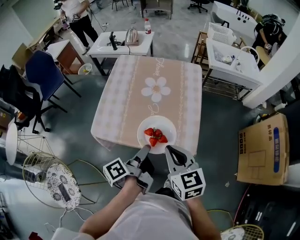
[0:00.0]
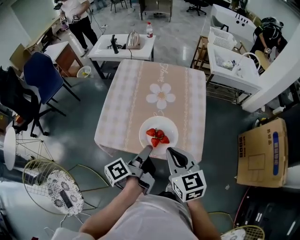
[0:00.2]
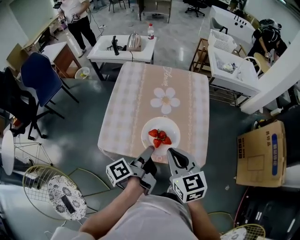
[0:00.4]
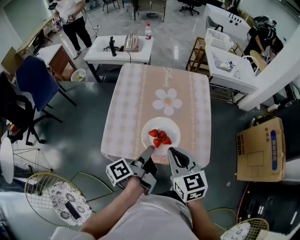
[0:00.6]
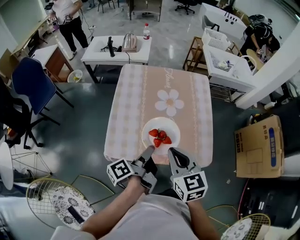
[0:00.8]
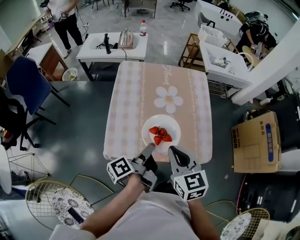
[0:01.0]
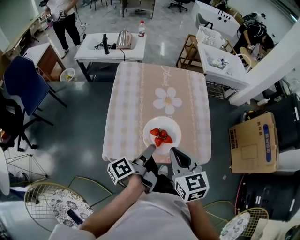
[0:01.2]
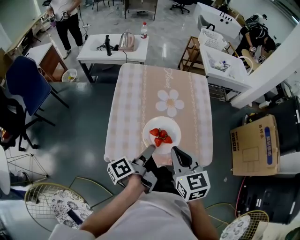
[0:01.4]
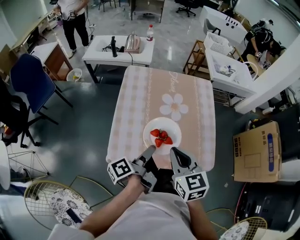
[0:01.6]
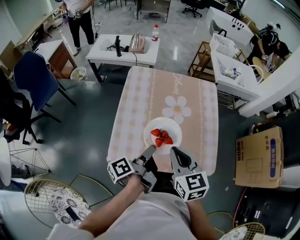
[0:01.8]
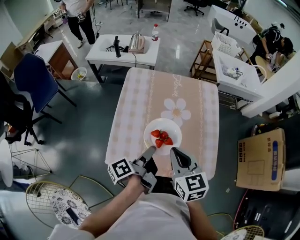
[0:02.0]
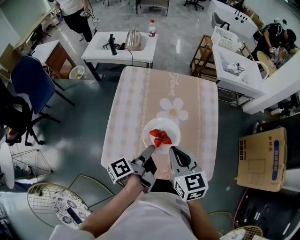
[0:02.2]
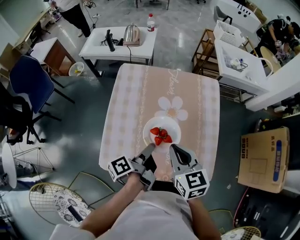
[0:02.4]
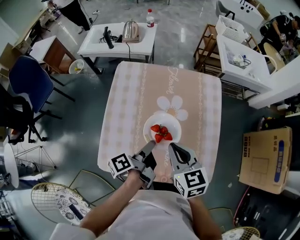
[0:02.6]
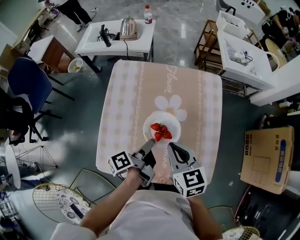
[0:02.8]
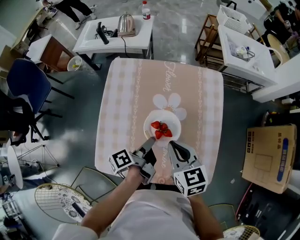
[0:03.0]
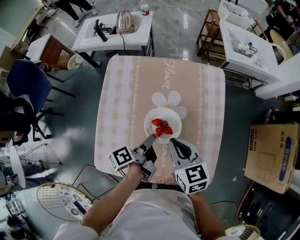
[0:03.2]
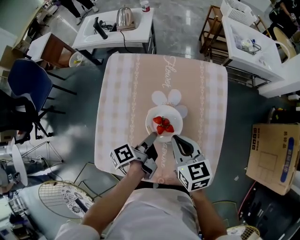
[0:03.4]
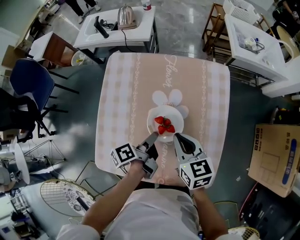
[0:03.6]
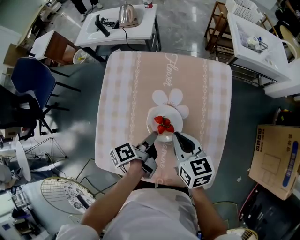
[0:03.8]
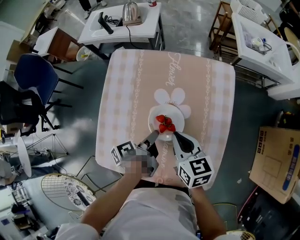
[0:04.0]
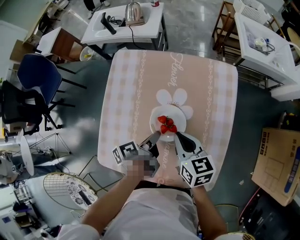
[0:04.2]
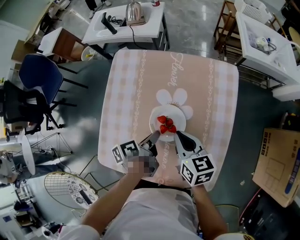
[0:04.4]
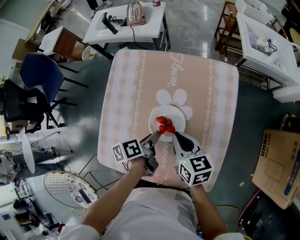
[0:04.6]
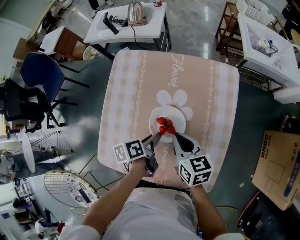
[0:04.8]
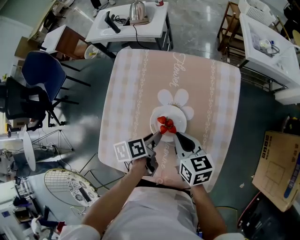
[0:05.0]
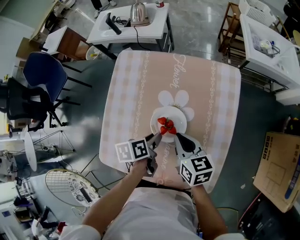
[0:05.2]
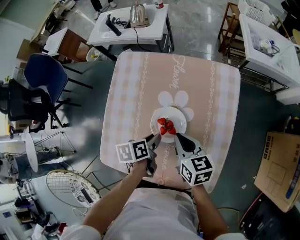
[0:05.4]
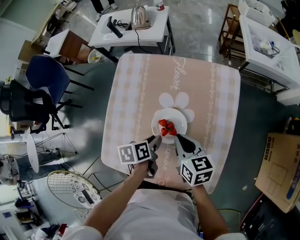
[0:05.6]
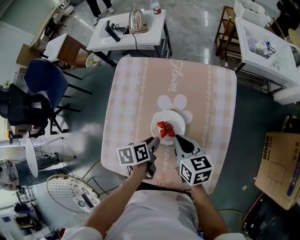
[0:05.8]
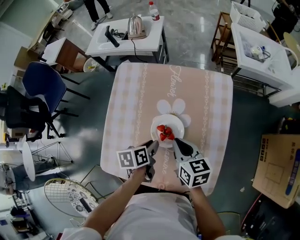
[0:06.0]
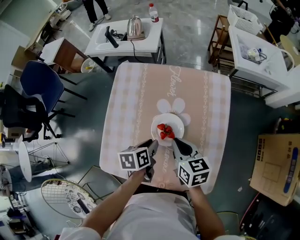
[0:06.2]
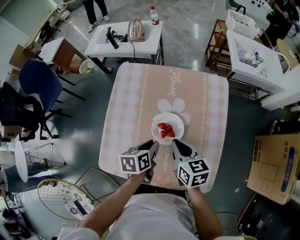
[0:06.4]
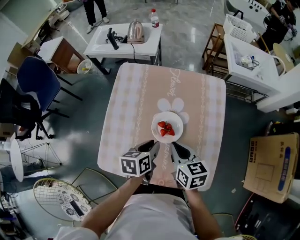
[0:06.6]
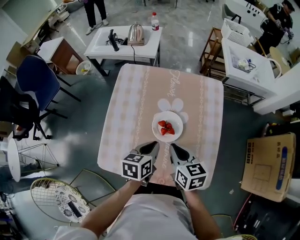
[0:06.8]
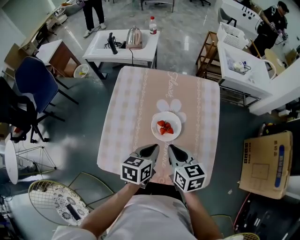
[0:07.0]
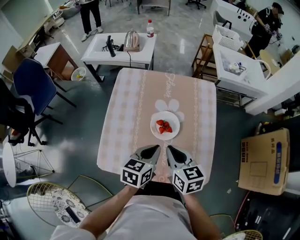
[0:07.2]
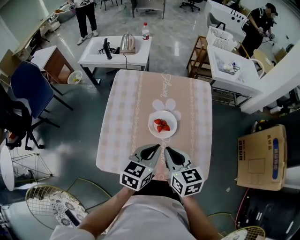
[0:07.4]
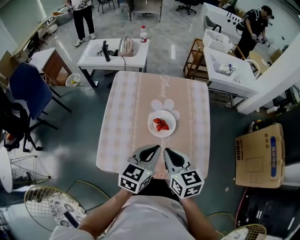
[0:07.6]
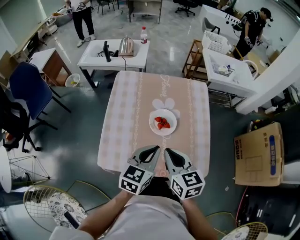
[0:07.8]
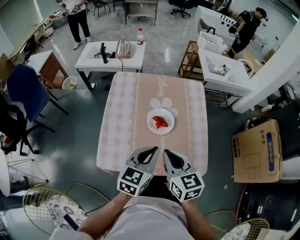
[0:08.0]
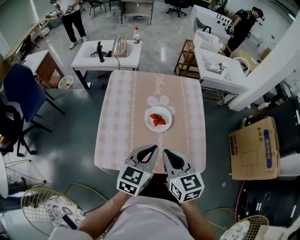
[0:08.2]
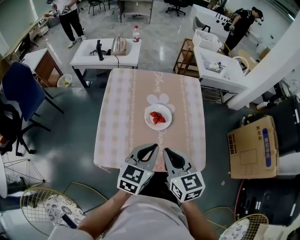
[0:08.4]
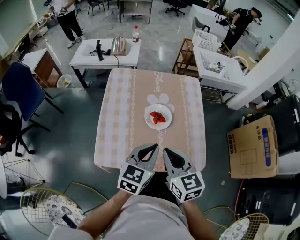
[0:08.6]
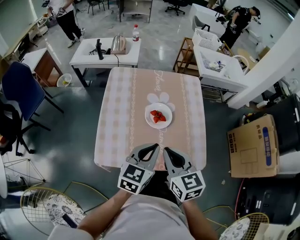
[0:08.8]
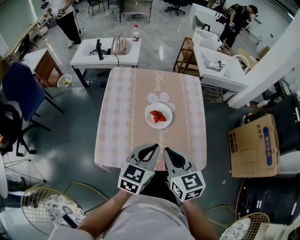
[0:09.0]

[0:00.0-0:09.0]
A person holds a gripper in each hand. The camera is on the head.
0:00.0 to 0:01.6: The right gripper ends up some 20 cm from where it was.
0:01.6 to 0:03.0: The right gripper changes place by roughly 20 cm.
0:03.0 to 0:04.4: The right gripper travels downward by about 5 cm.
0:06.0 to 0:07.6: The right gripper shifts by roughly 15 cm.
0:07.6 to 0:09.0: The right gripper ends up approximately 5 cm from where it was.

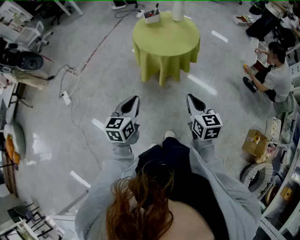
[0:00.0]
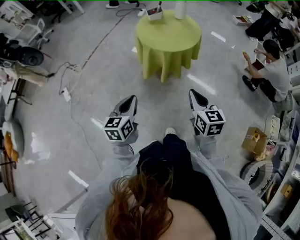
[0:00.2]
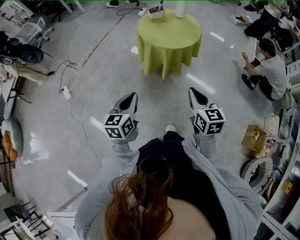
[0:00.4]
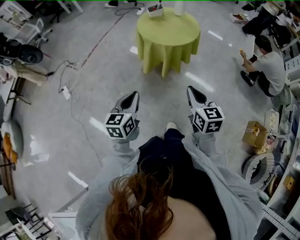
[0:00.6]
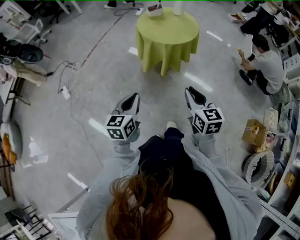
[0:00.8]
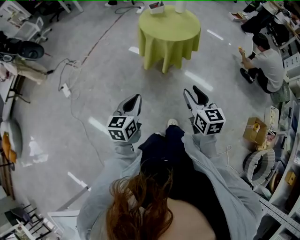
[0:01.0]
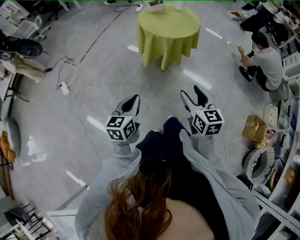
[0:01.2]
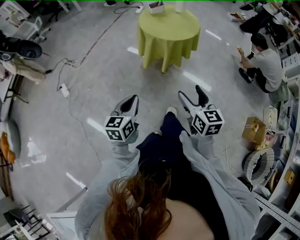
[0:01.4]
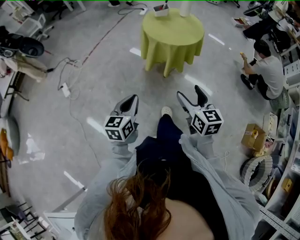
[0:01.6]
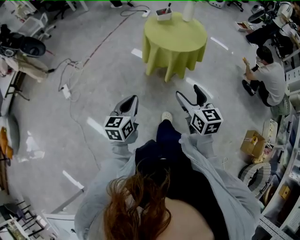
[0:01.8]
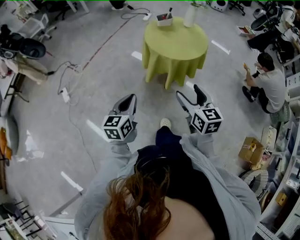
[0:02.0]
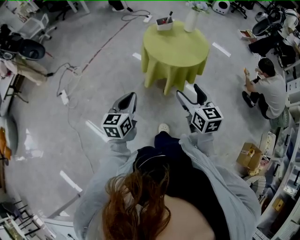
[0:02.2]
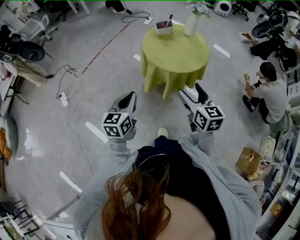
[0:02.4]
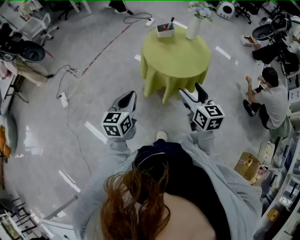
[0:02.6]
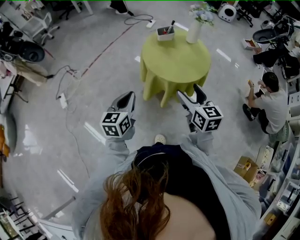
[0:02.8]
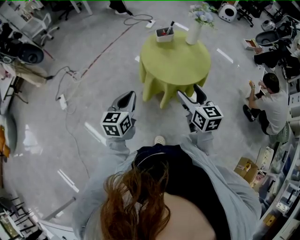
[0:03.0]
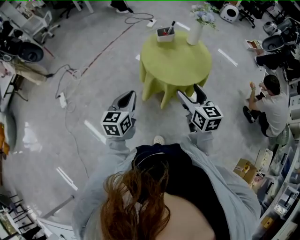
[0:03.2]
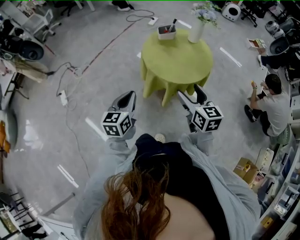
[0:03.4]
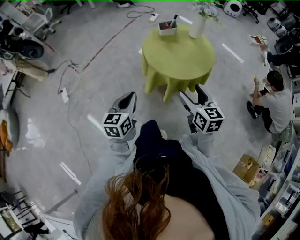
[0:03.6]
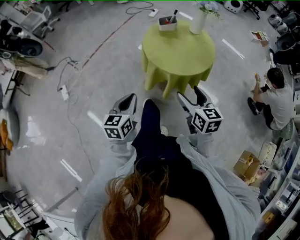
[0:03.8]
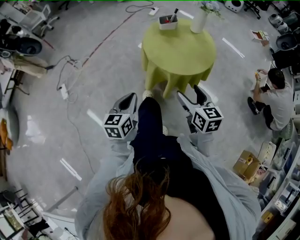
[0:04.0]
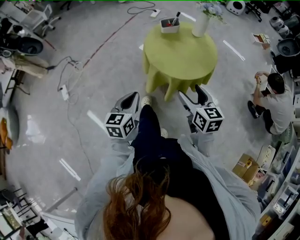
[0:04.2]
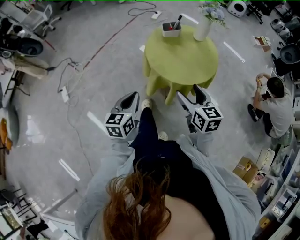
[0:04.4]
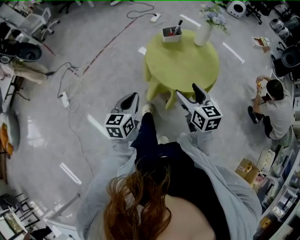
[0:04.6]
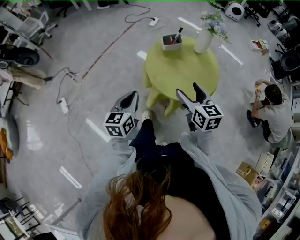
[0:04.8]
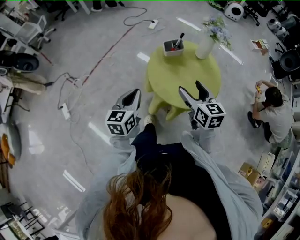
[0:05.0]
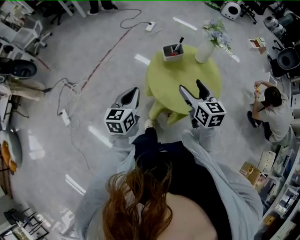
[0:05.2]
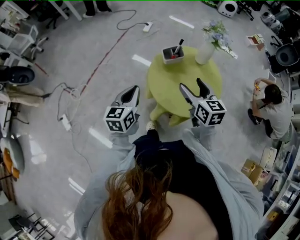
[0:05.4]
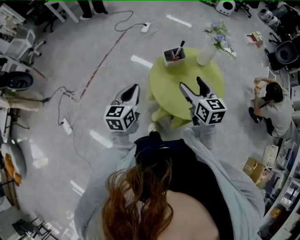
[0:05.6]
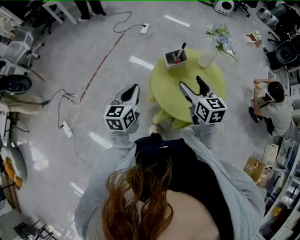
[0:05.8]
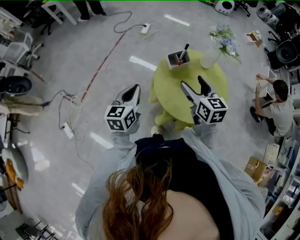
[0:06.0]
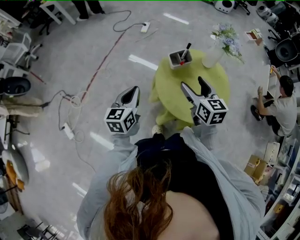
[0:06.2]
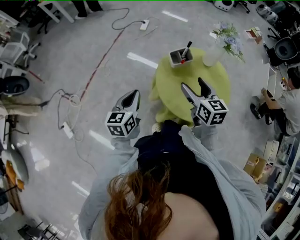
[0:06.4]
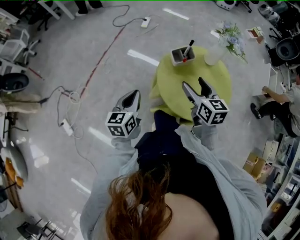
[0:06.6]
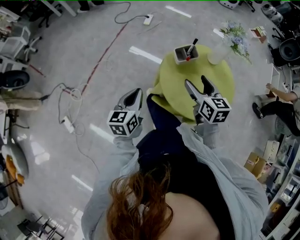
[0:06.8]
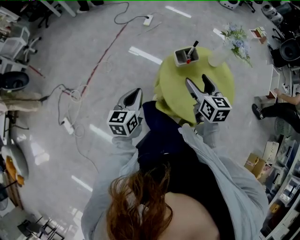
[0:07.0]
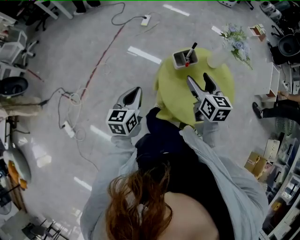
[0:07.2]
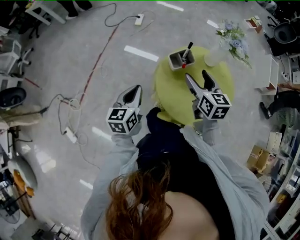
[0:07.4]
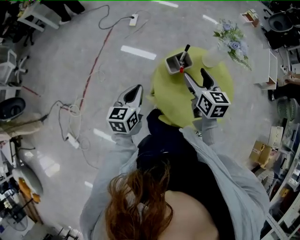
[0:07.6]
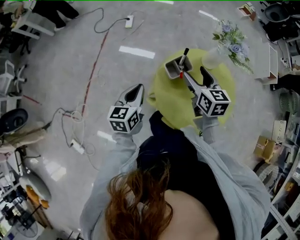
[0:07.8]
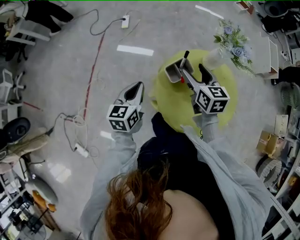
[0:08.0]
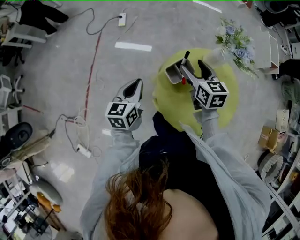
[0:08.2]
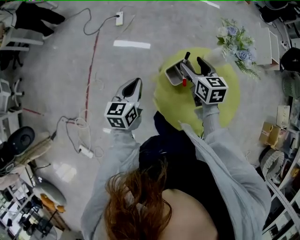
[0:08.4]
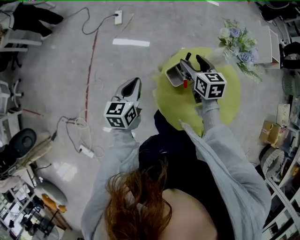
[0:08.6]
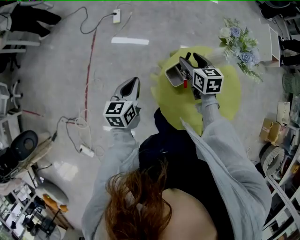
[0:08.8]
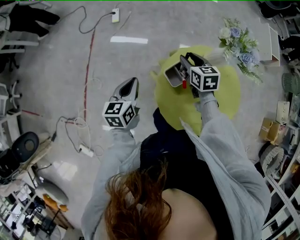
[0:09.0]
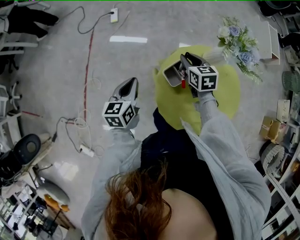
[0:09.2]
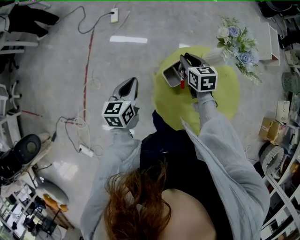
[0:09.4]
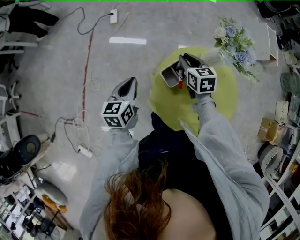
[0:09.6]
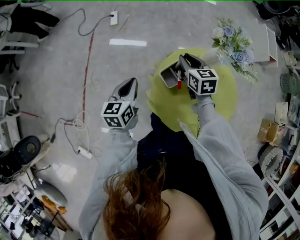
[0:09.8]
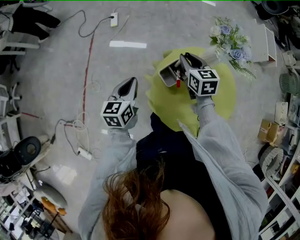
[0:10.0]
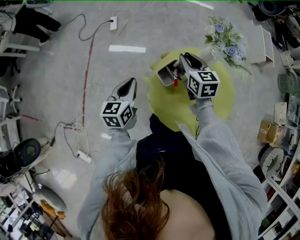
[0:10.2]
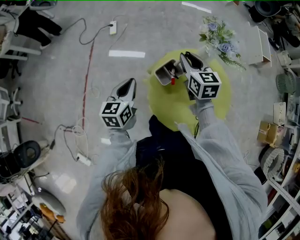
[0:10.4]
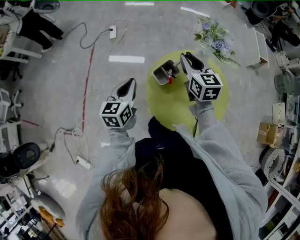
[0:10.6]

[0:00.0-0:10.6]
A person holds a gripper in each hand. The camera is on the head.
0:00.0 to 0:01.6: The grippers both shift backward and to the left by roughly 10 cm. The right gripper opens its fingers.
0:01.6 to 0:03.0: Both grippers move forward, some 30 cm.
0:03.0 to 0:04.6: Both grippers move forward, approximately 5 cm.
0:04.6 to 0:06.0: The two grippers go some 25 cm forward.
0:06.0 to 0:07.6: Both grippers travel together forward, approximately 10 cm.
0:07.6 to 0:09.0: The left gripper heads forward, covering some 15 cm. The right gripper shifts roughly 20 cm forward and downward, and closes its fingers.
0:09.0 to 0:10.6: The right gripper travels upward by about 15 cm, and changes its angle by roughly 20 degrees. The left gripper goes approximately 5 cm upward.

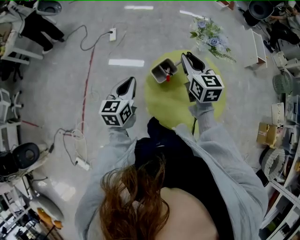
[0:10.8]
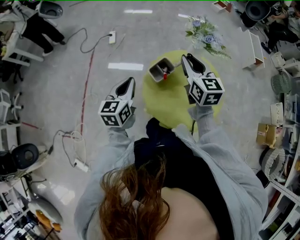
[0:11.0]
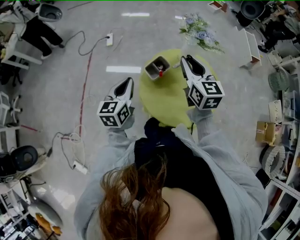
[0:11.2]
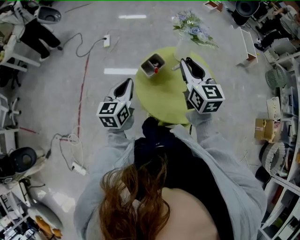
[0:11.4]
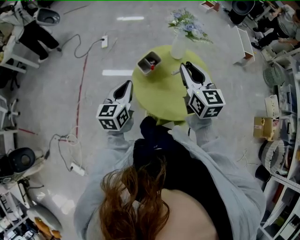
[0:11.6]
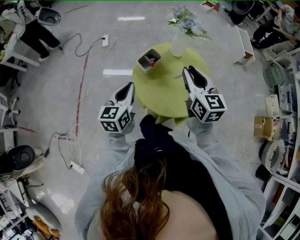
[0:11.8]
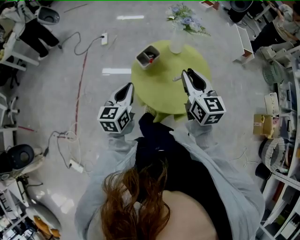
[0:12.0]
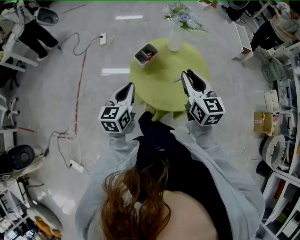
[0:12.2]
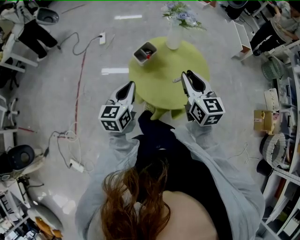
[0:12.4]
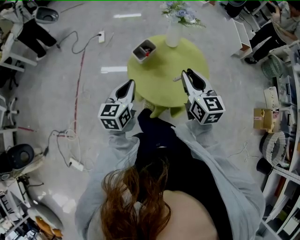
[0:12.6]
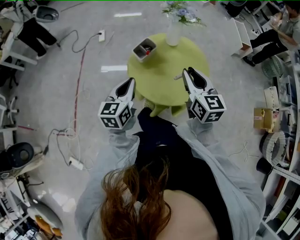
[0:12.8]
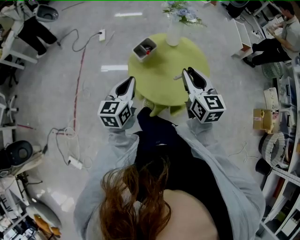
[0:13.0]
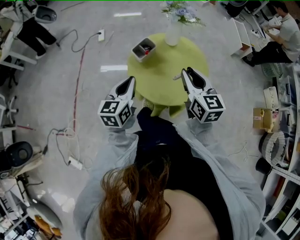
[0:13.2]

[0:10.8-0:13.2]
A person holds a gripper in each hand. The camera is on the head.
0:10.8 to 0:12.0: The right gripper shifts roughly 20 cm backward; the left gripper is displaced backward and to the right by approximately 15 cm.
0:12.0 to 0:13.2: The grippers make only small movements.

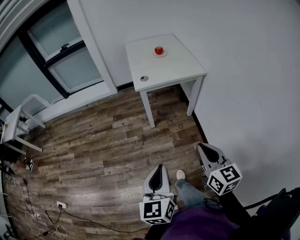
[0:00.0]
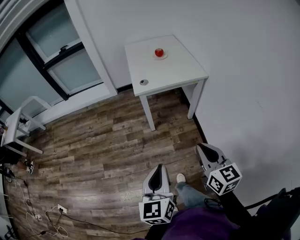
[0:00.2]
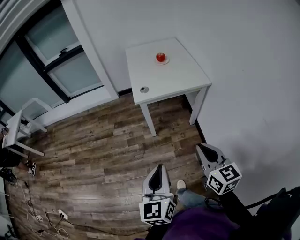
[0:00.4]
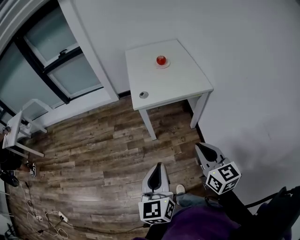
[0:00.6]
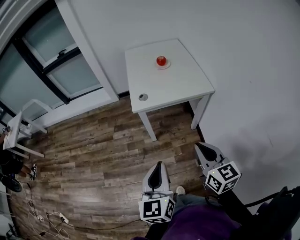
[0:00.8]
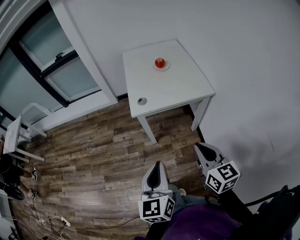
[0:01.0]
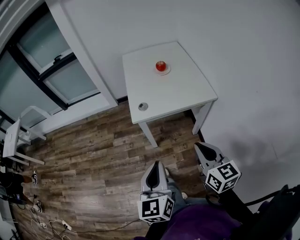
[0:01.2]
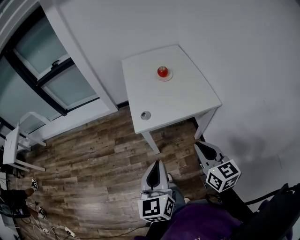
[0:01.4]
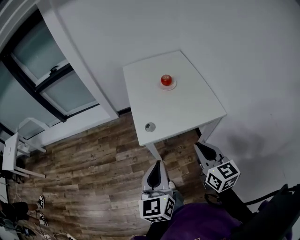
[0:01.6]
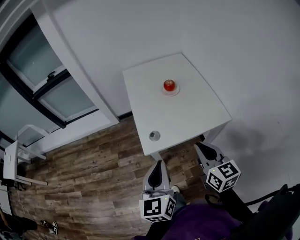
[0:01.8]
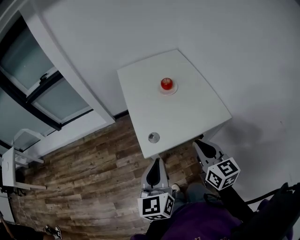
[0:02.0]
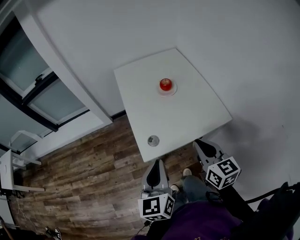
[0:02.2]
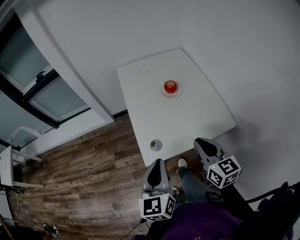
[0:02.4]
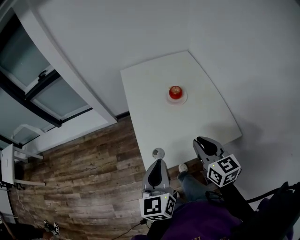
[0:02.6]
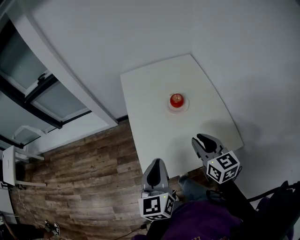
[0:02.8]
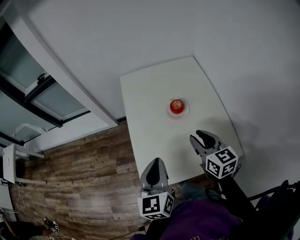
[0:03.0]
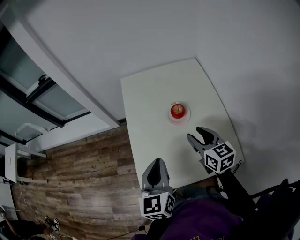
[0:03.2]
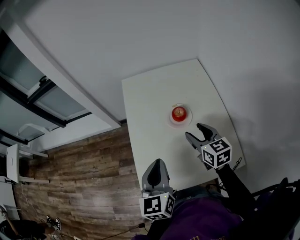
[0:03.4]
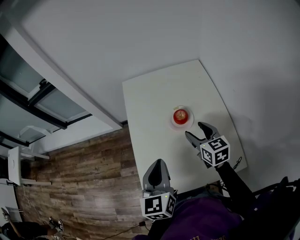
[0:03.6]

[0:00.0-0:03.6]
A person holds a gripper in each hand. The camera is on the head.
0:00.0 to 0:01.8: The pair of grippers is taken forward, roughly 40 cm.
0:01.8 to 0:03.6: Both grippers travel together forward, roughly 35 cm. The right gripper opens.
